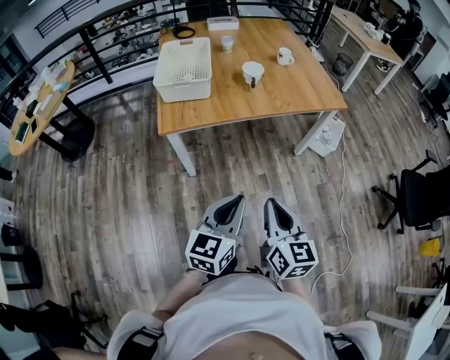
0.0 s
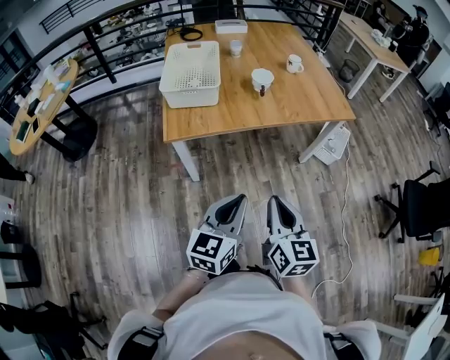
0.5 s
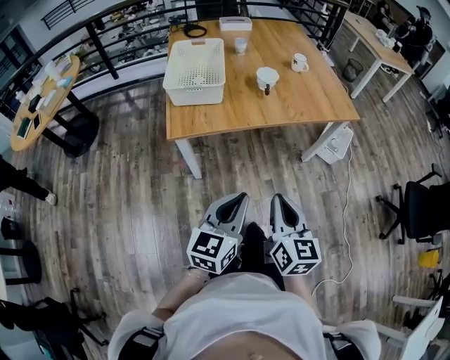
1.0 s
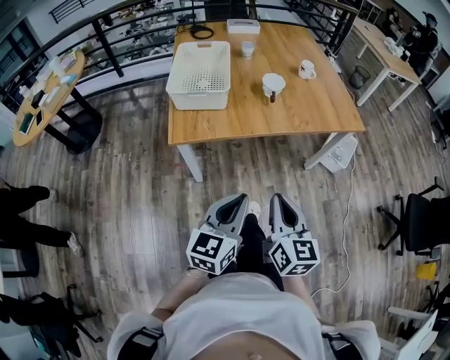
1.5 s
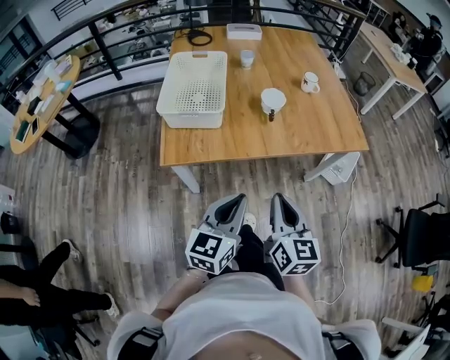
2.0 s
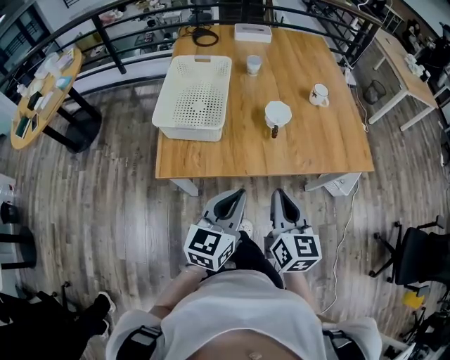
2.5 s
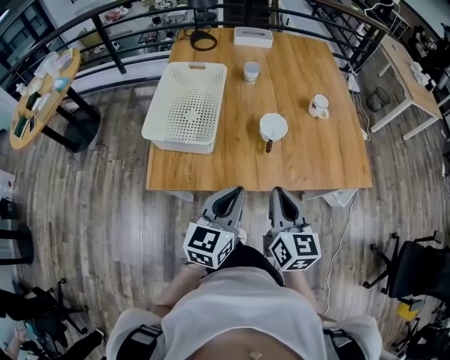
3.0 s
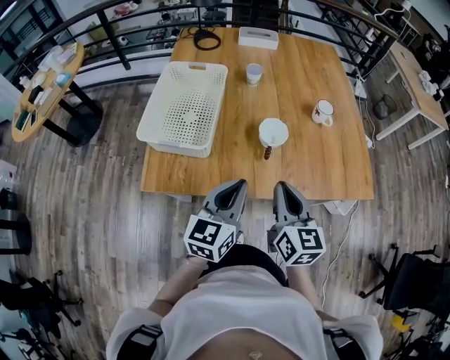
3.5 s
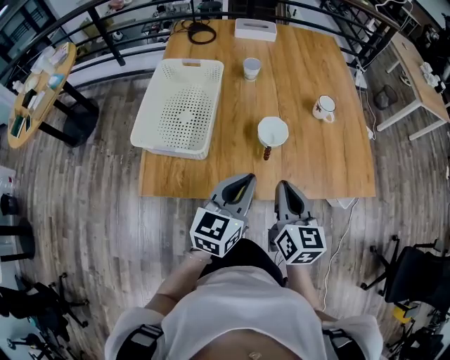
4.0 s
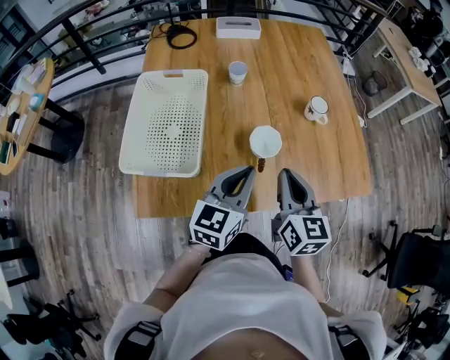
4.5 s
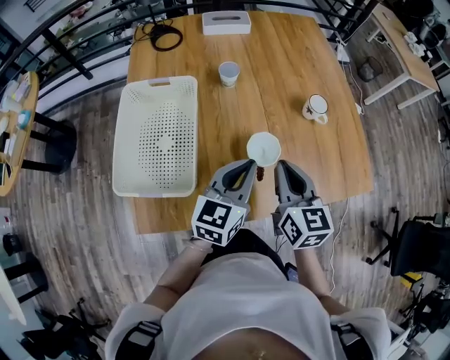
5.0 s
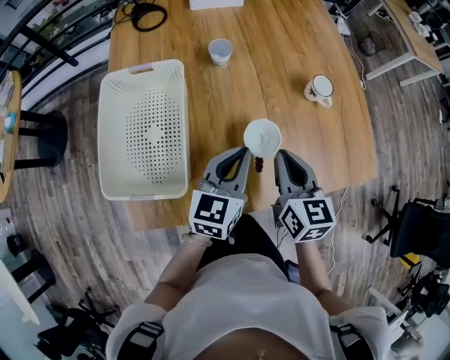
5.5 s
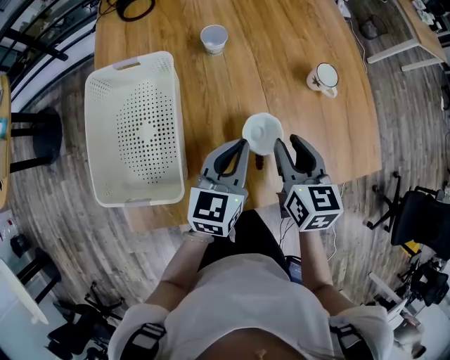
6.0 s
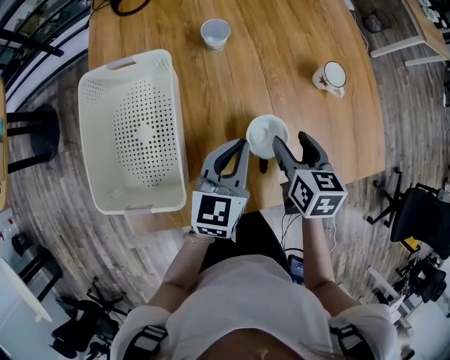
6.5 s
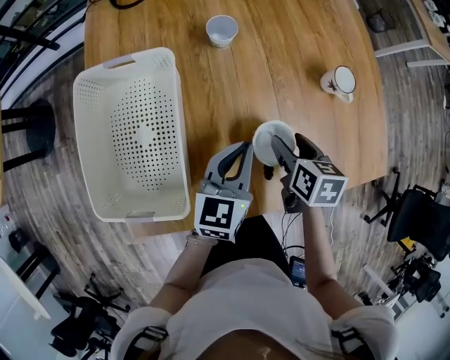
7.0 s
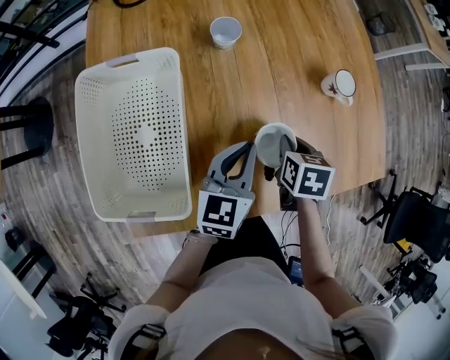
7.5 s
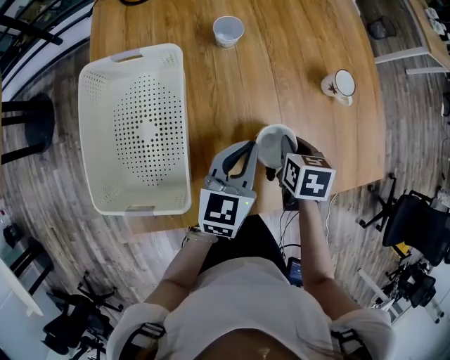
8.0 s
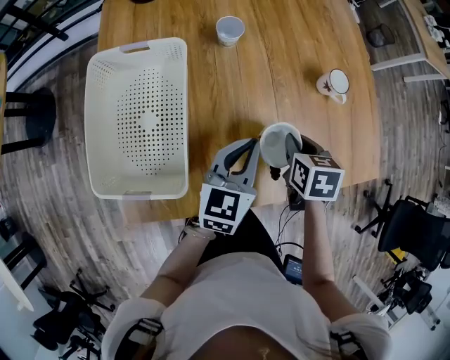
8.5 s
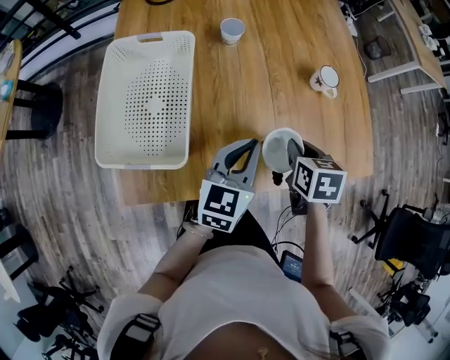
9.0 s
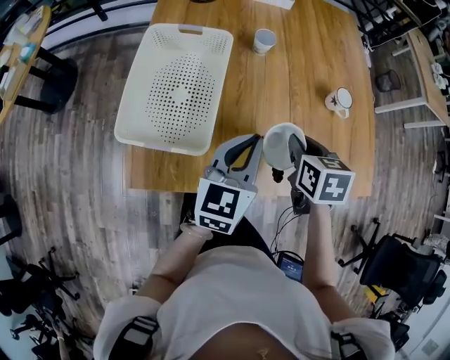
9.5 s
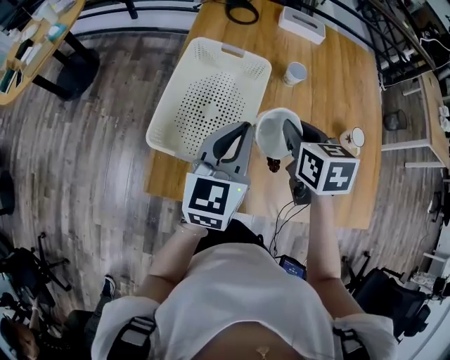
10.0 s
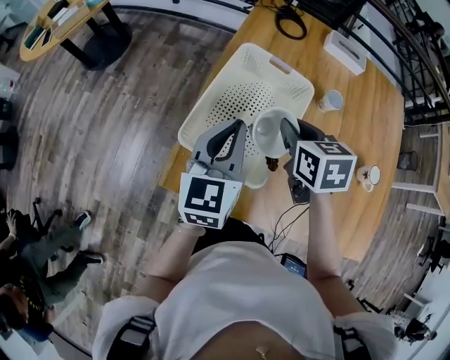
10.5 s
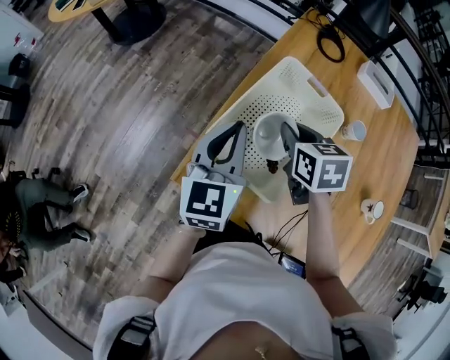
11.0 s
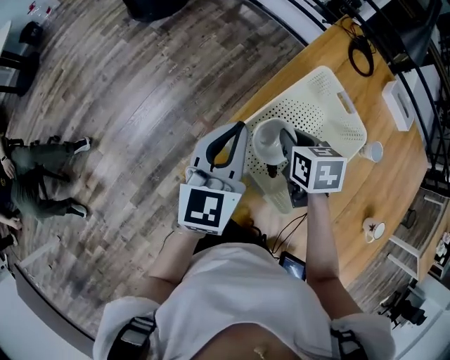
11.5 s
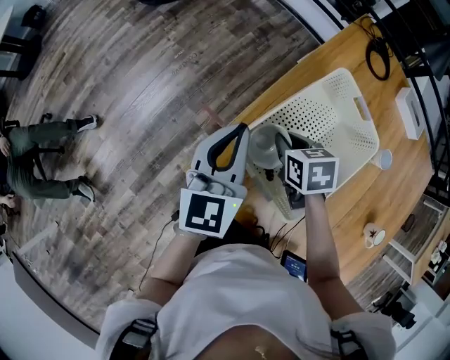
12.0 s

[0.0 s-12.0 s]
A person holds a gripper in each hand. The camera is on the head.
0.0 to 2.0 s: Both grippers travel together forward, some 20 cm.
2.0 to 4.0 s: The two grippers go approximately 25 cm forward.
4.0 to 6.0 s: Both grippers travel together forward, about 15 cm.
6.0 to 8.0 s: The right gripper moves downward, roughly 10 cm, and changes its angle by about 30 degrees.
8.0 to 10.0 s: The right gripper is displaced upward by about 20 cm, and changes its angle by about 40 degrees. Meanwhile the left gripper ends up about 25 cm from where it was, and changes its angle by about 30 degrees.
10.0 to 12.0 s: The left gripper moves some 25 cm, and turns by some 40 degrees. Meanwhile the right gripper shifts by some 30 cm, and swivels roughly 40 degrees.

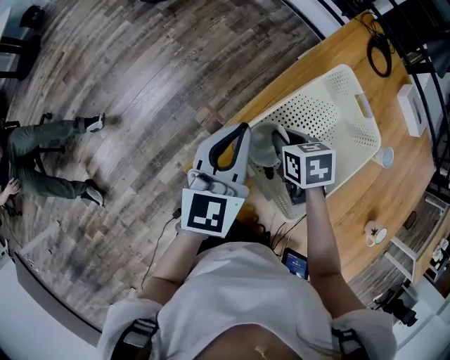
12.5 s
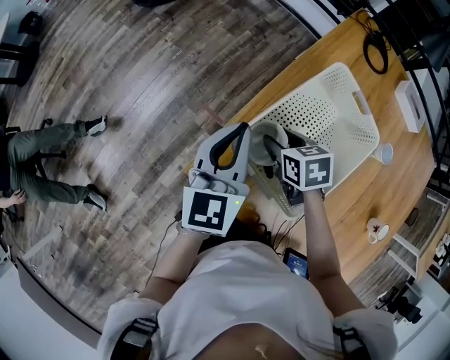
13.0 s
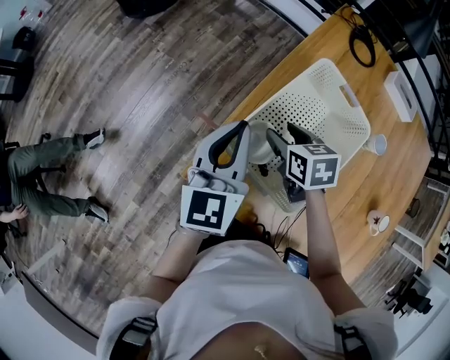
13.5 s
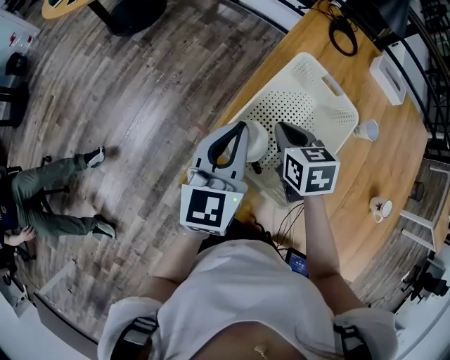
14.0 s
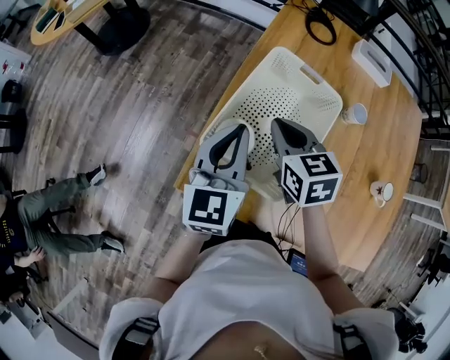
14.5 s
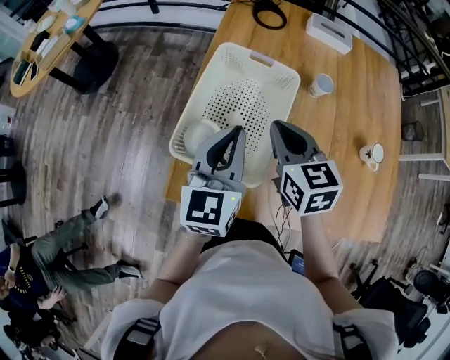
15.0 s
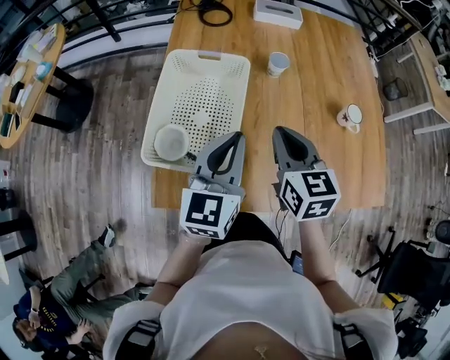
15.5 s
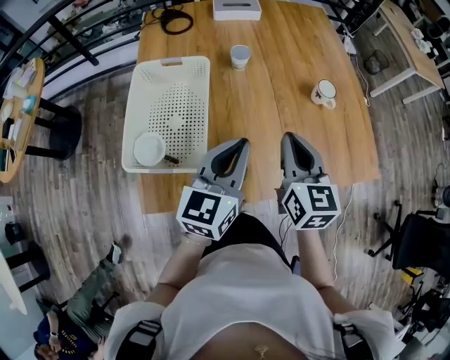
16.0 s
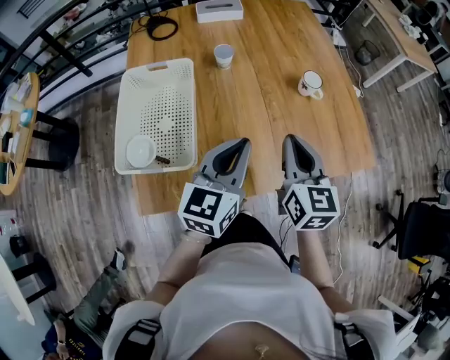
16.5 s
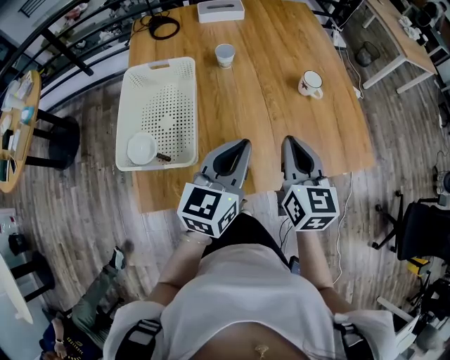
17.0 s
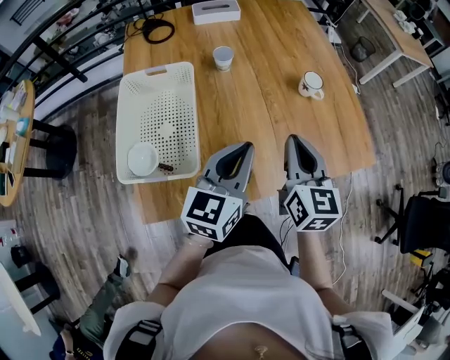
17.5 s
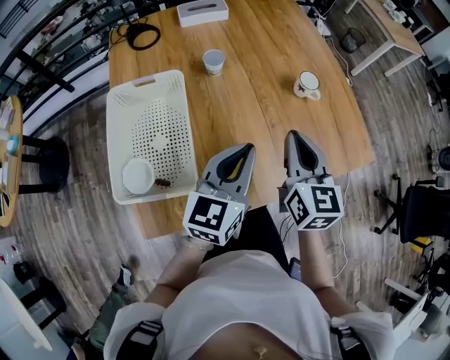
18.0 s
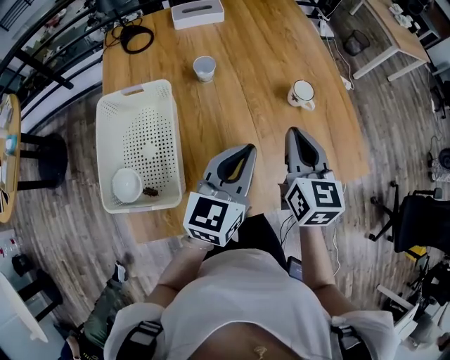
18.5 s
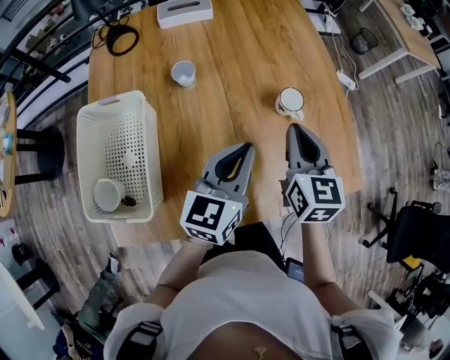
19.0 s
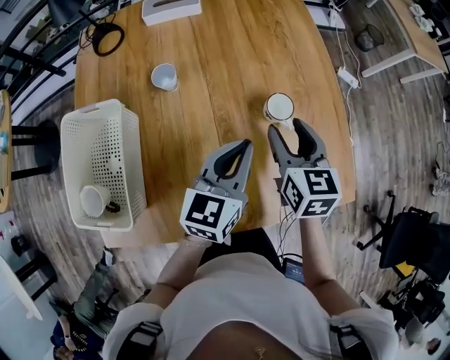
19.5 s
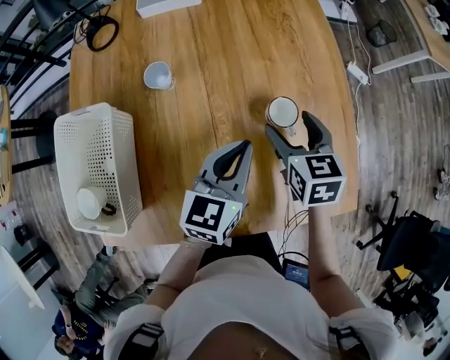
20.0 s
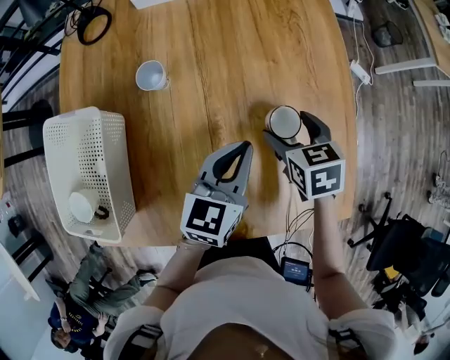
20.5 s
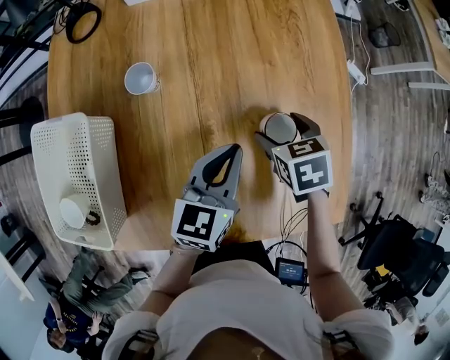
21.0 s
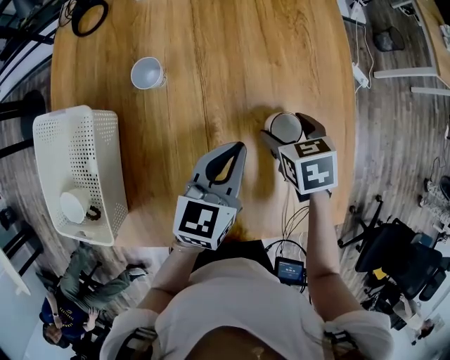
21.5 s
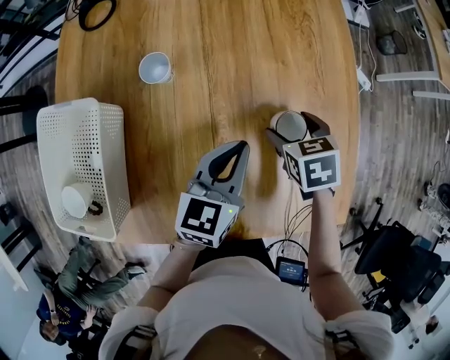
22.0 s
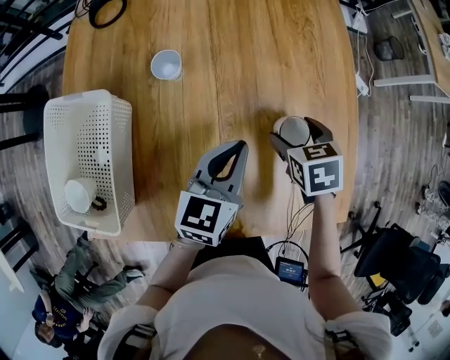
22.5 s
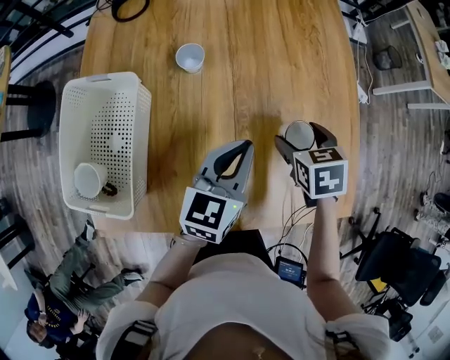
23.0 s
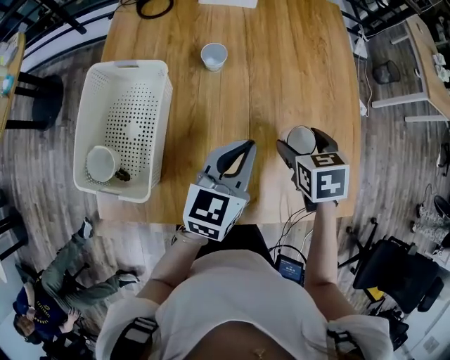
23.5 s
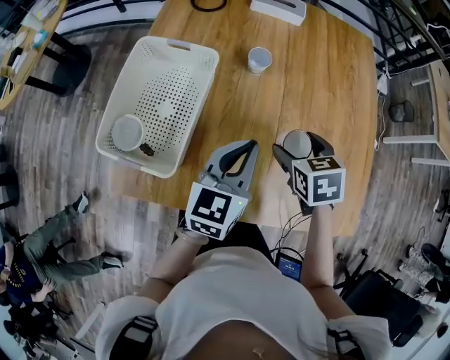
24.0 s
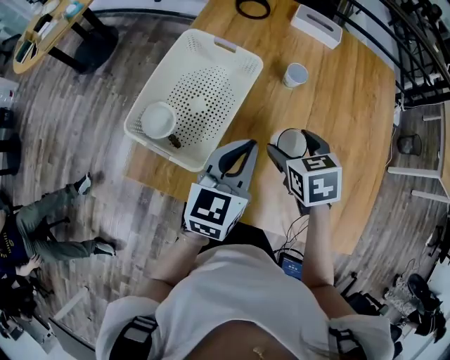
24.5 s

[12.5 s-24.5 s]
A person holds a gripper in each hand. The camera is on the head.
12.5 to 14.5 s: The left gripper goes approximately 5 cm to the right. The right gripper goes approximately 15 cm upward, swivels roughly 30 degrees, and opens, then closes once more.
14.5 to 16.5 s: The left gripper changes place by some 35 cm, and rotates some 50 degrees. The right gripper changes place by some 40 cm, and changes its angle by about 50 degrees.
16.5 to 18.5 s: The grippers both shift forward by roughly 10 cm.
18.5 to 20.5 s: The grippers both shift forward, downward and to the right by approximately 25 cm. The right gripper points its fingers some 40 degrees further downward, and opens its fingers.
20.5 to 22.5 s: The grippers stay close to where they were, moving slightly.
22.5 to 24.5 s: The right gripper is displaced to the left by roughly 25 cm, and rotates roughly 20 degrees. The left gripper moves to the left and backward, roughly 25 cm, and changes its angle by about 20 degrees.

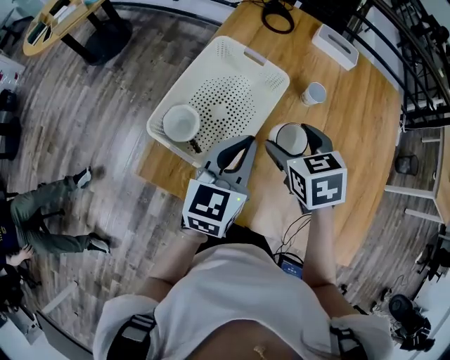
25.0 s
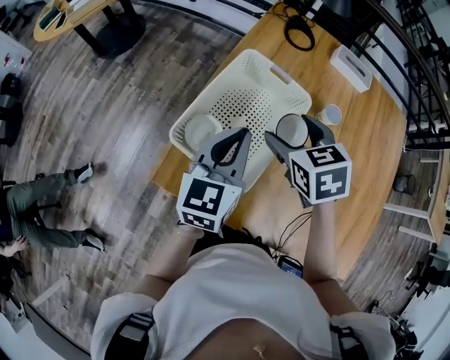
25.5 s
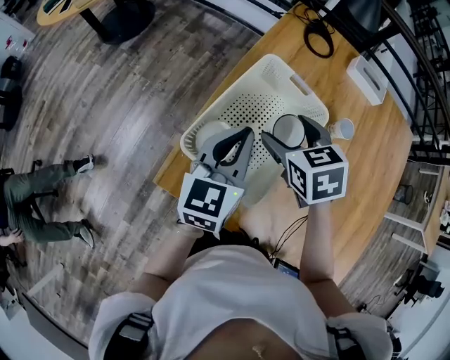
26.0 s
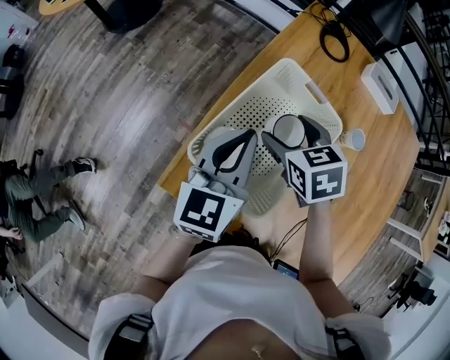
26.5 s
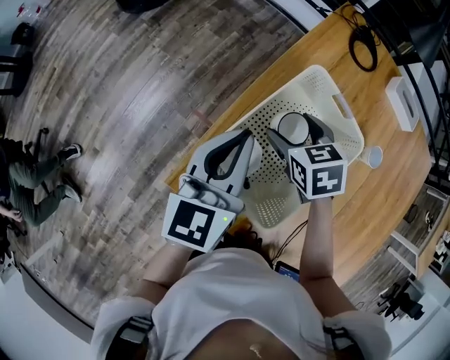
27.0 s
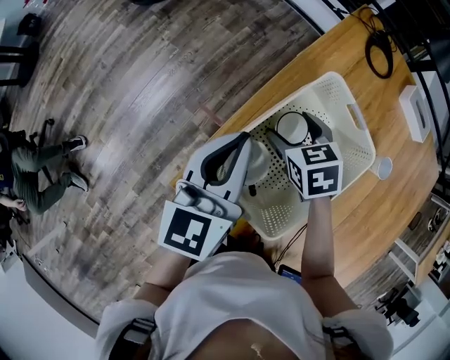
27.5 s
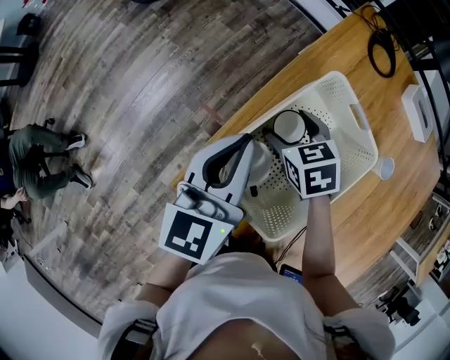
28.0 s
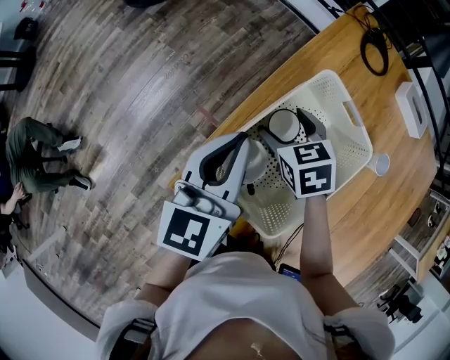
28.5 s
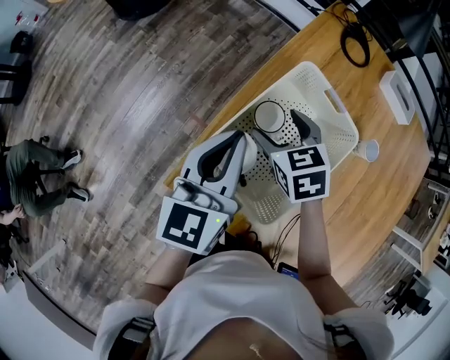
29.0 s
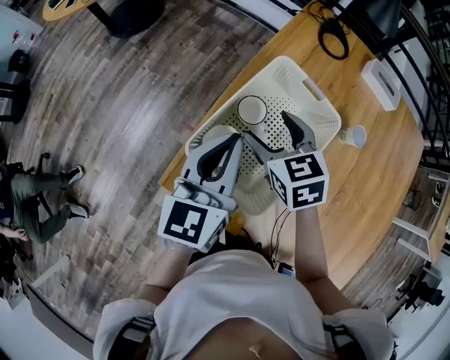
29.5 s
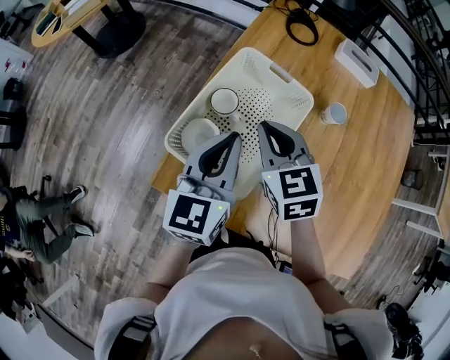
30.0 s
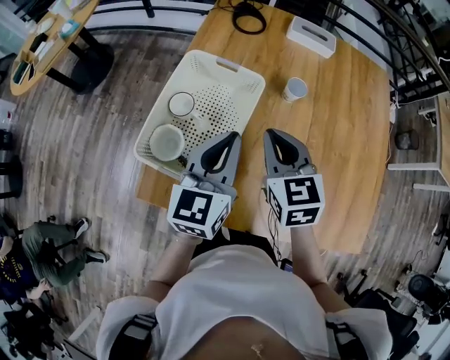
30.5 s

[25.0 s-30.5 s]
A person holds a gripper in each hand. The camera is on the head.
25.0 to 27.0 s: The right gripper goes about 25 cm to the left, forward and downward; the left gripper moves to the left and forward, some 20 cm, and swivels some 20 degrees.
27.0 to 28.5 s: The grippers make only small movements.
28.5 to 30.5 s: The left gripper moves some 25 cm, and turns by about 30 degrees; the right gripper ends up some 30 cm from where it was, changes its angle by about 40 degrees, and closes its fingers.
